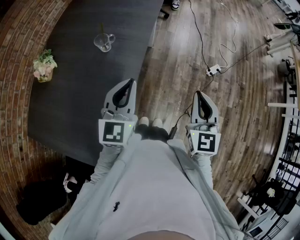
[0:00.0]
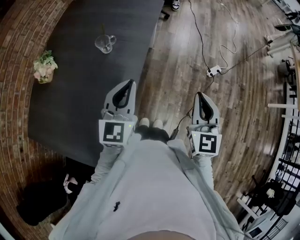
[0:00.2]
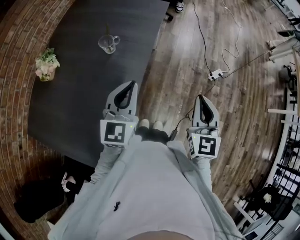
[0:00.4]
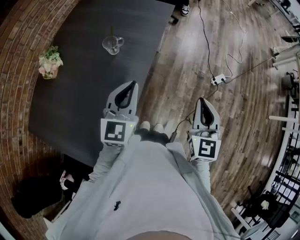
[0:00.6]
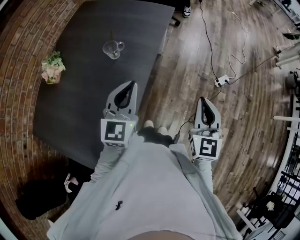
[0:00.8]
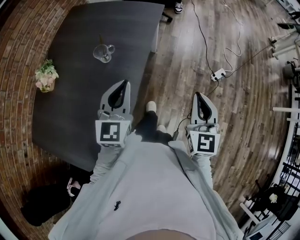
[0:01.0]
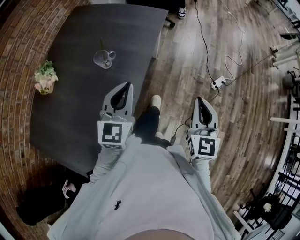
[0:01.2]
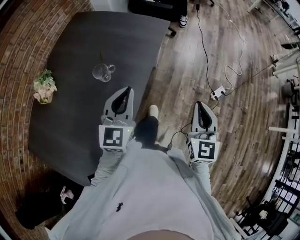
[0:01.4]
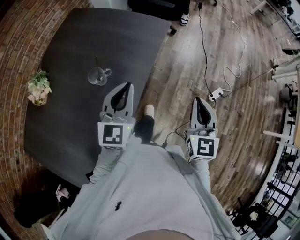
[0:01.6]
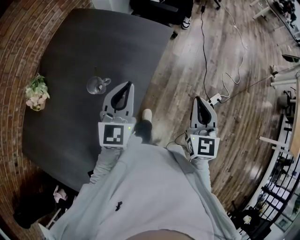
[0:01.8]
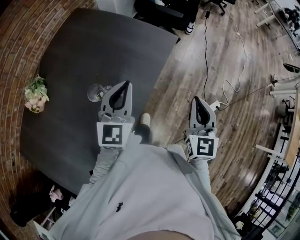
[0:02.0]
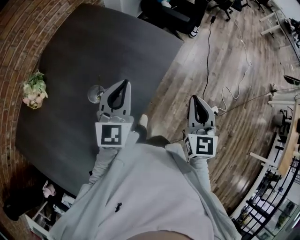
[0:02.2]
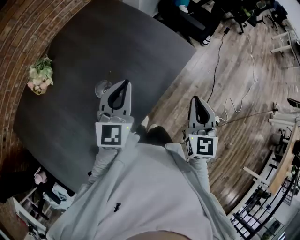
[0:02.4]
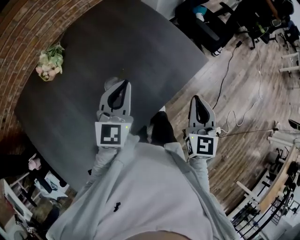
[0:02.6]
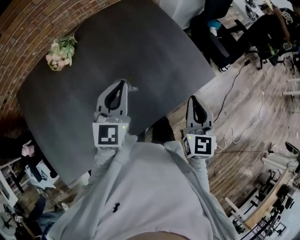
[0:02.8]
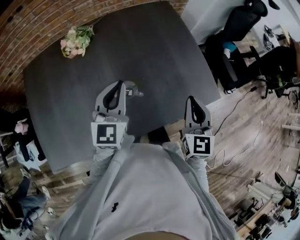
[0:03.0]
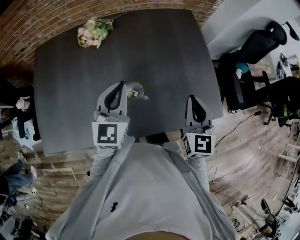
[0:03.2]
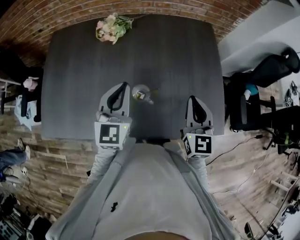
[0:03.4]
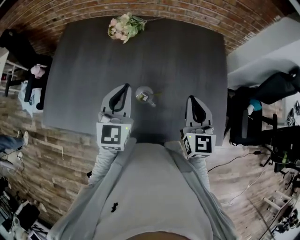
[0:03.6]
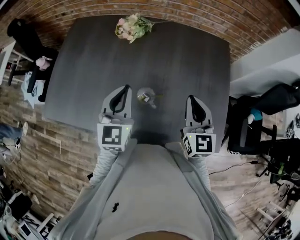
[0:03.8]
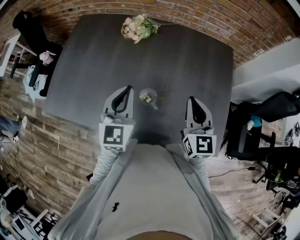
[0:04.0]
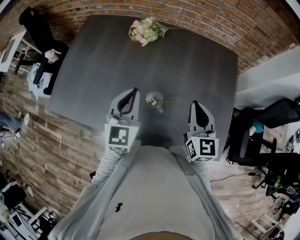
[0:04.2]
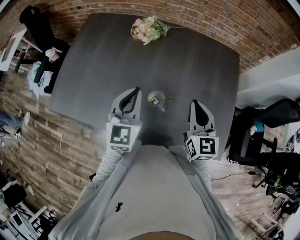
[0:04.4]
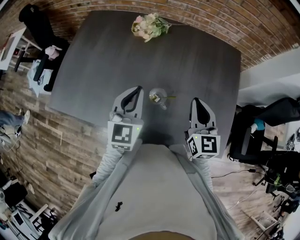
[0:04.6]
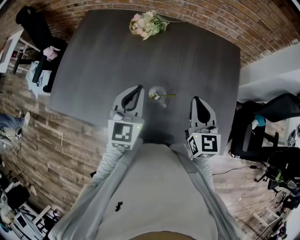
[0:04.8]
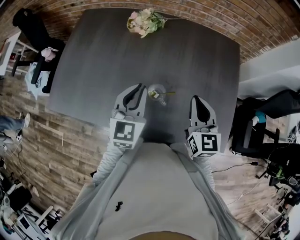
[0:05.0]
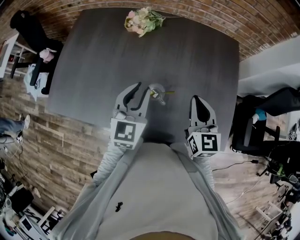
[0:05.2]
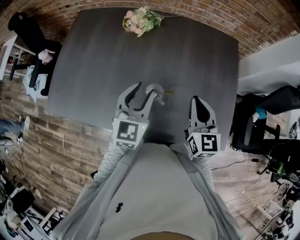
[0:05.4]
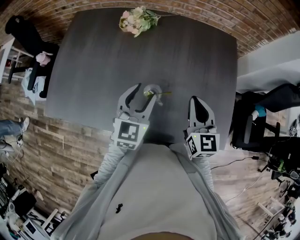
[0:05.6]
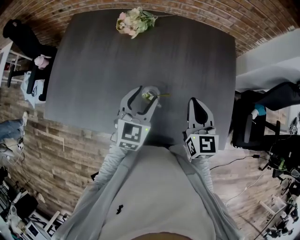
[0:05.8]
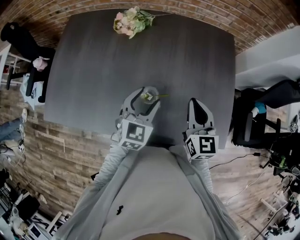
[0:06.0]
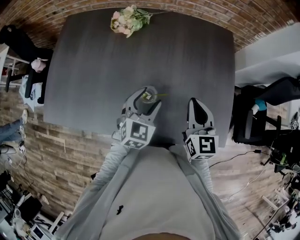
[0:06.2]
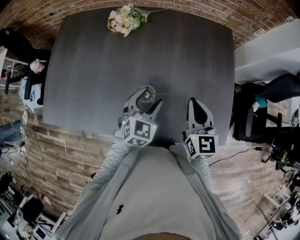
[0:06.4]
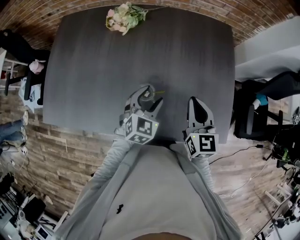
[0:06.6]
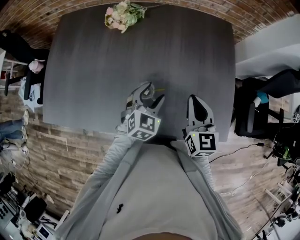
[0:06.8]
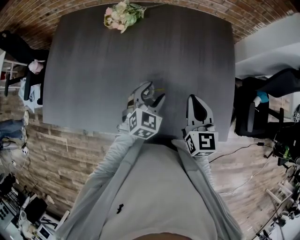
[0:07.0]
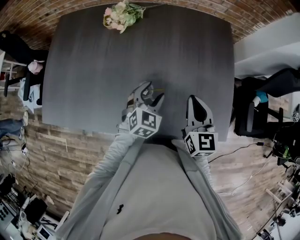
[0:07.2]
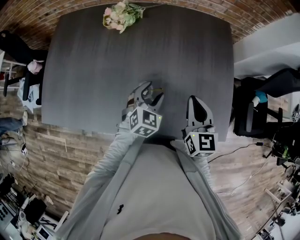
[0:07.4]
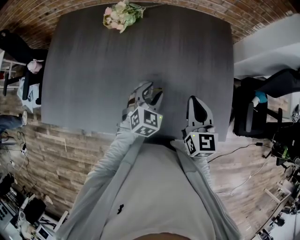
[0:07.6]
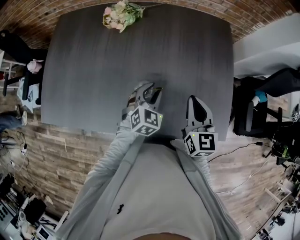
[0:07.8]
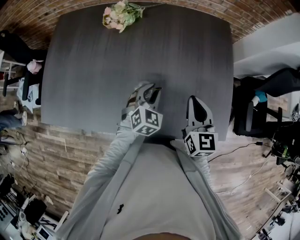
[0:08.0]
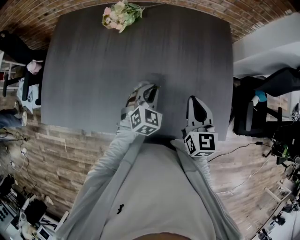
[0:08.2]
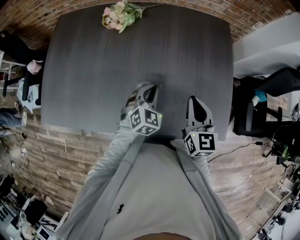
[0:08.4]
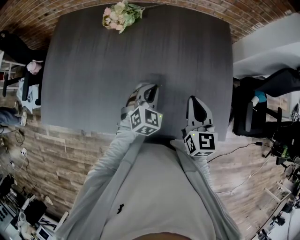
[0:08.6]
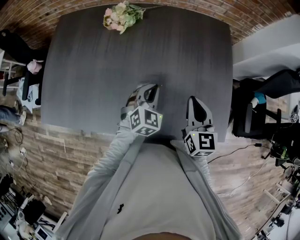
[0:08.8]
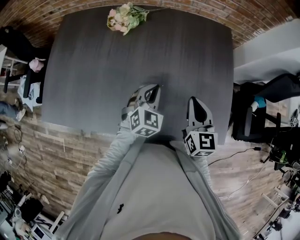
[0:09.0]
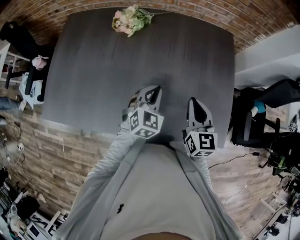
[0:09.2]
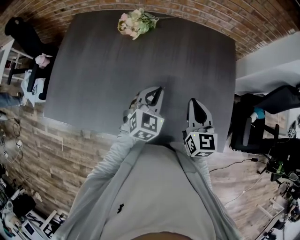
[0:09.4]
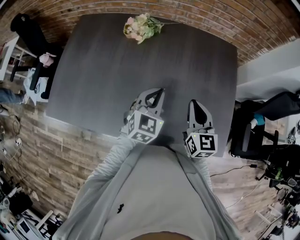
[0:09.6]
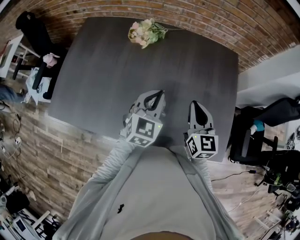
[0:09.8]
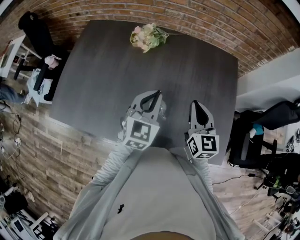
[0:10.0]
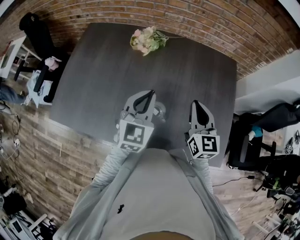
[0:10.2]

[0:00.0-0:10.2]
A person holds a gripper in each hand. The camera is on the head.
0:00.0 to 0:01.4: Both grippers move forward, about 15 cm.
0:01.4 to 0:03.0: The left gripper ends up approximately 20 cm from where it was, and changes its angle by roughly 50 degrees; the right gripper shifts by roughly 40 cm, and changes its angle by roughly 50 degrees.
0:03.0 to 0:04.4: The right gripper changes place by roughly 15 cm, and changes its angle by approximately 40 degrees. The left gripper moves about 5 cm, and changes its angle by about 40 degrees.
0:04.4 to 0:05.8: The left gripper travels to the right and downward by approximately 10 cm, and opens up.
0:05.8 to 0:07.2: The left gripper goes about 10 cm downward and to the right.
0:07.2 to 0:08.8: The left gripper closes.
0:08.8 to 0:10.2: The right gripper shifts approximately 10 cm upward, to the left and forward. Meanwhile the left gripper is displaced upward and to the left by approximately 20 cm, and swivels roughly 30 degrees.

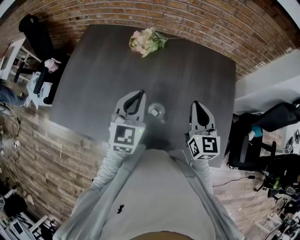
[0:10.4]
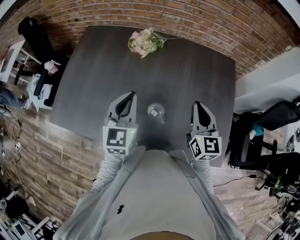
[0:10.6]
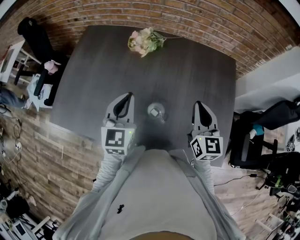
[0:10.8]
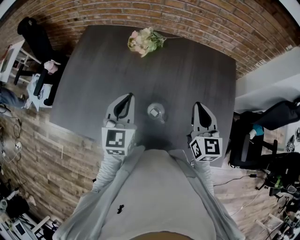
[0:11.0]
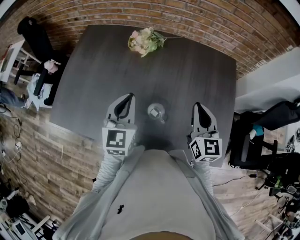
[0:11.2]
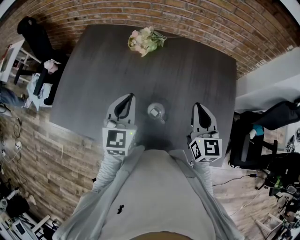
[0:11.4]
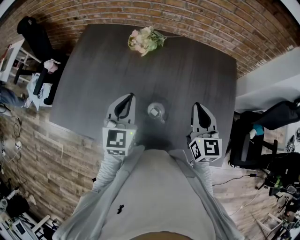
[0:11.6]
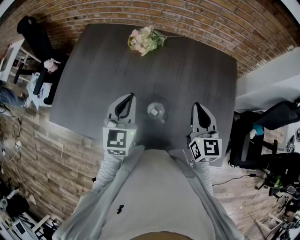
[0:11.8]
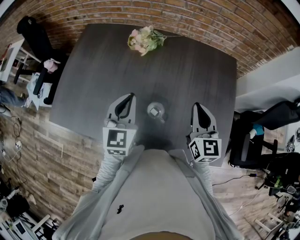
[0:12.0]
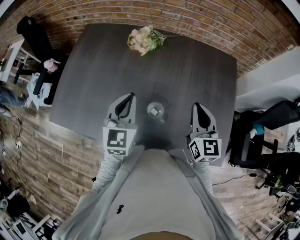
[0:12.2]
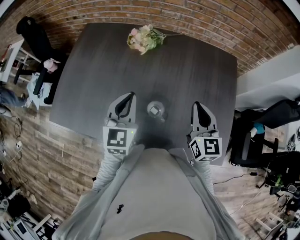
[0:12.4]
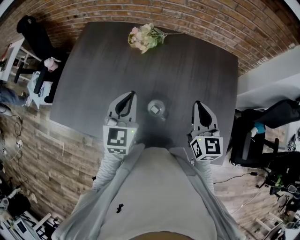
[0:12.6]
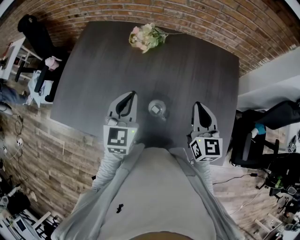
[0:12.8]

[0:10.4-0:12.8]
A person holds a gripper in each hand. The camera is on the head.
0:10.4 to 0:11.6: The grippers move only a little.
0:11.6 to 0:12.8: Both grippers stay about where they are.

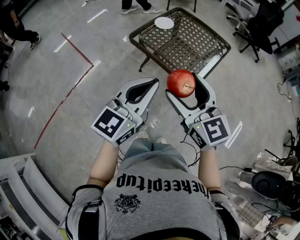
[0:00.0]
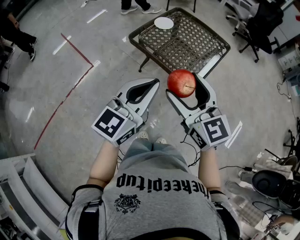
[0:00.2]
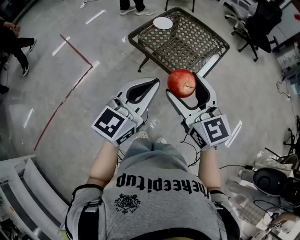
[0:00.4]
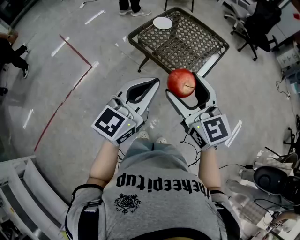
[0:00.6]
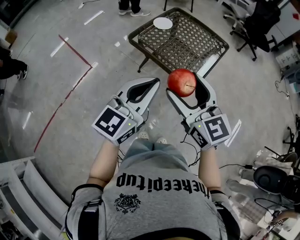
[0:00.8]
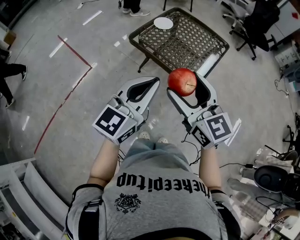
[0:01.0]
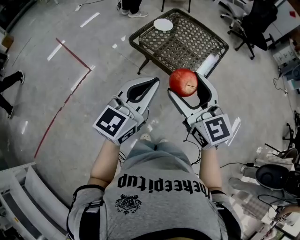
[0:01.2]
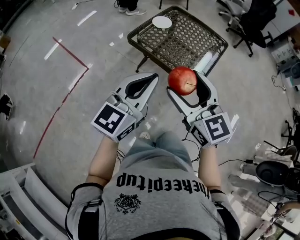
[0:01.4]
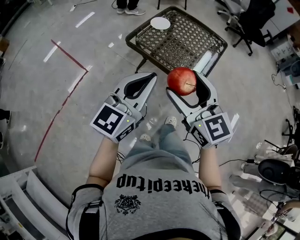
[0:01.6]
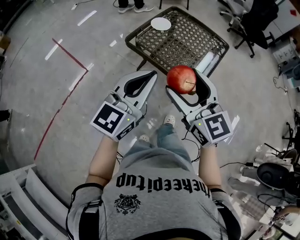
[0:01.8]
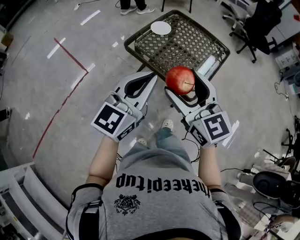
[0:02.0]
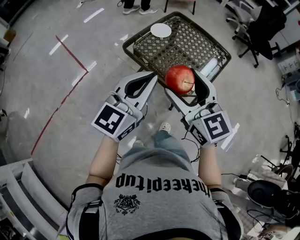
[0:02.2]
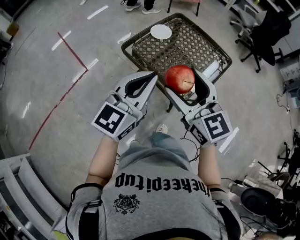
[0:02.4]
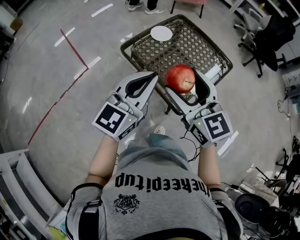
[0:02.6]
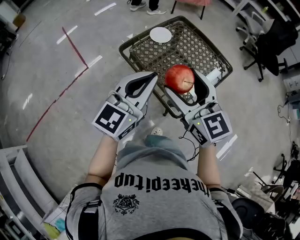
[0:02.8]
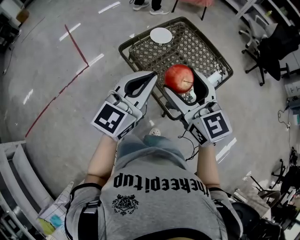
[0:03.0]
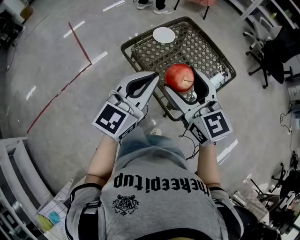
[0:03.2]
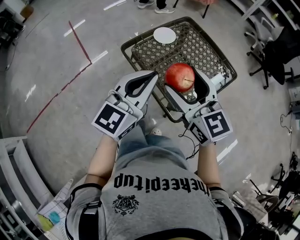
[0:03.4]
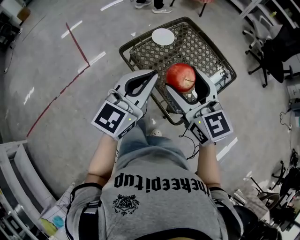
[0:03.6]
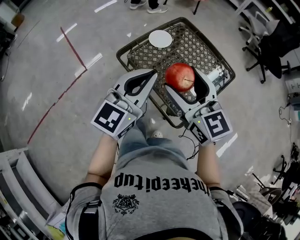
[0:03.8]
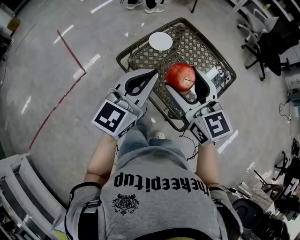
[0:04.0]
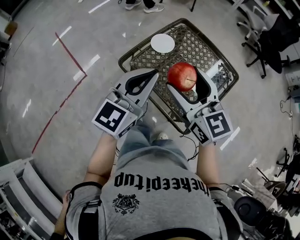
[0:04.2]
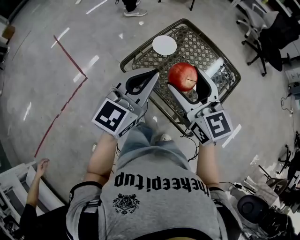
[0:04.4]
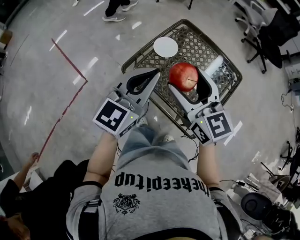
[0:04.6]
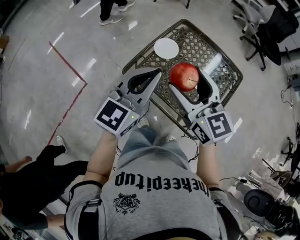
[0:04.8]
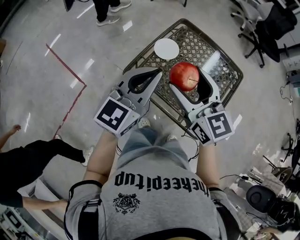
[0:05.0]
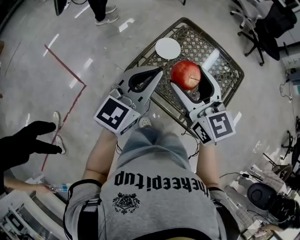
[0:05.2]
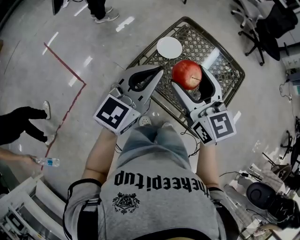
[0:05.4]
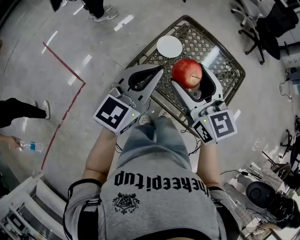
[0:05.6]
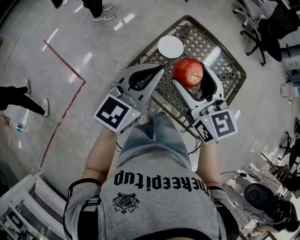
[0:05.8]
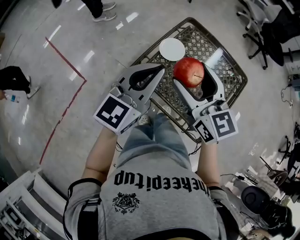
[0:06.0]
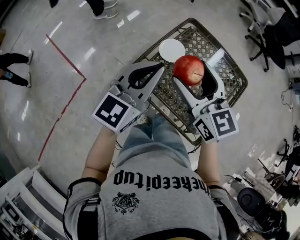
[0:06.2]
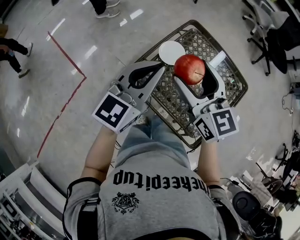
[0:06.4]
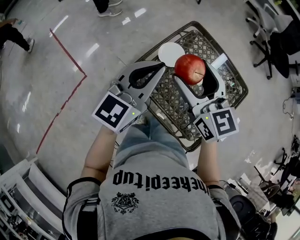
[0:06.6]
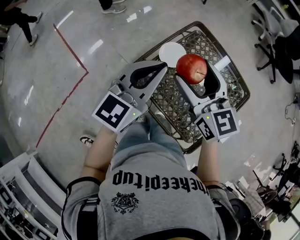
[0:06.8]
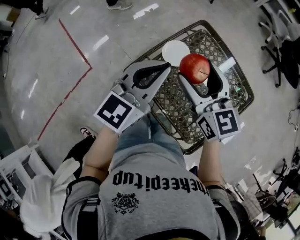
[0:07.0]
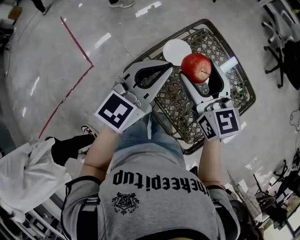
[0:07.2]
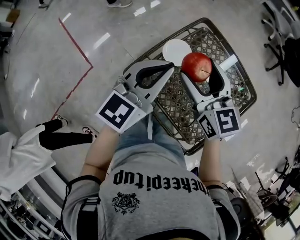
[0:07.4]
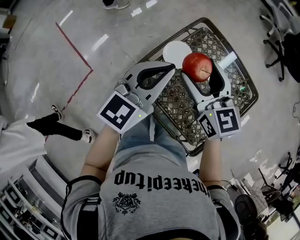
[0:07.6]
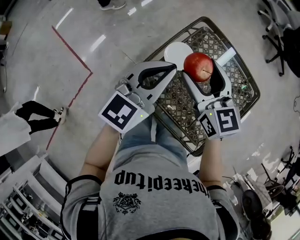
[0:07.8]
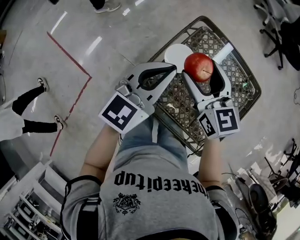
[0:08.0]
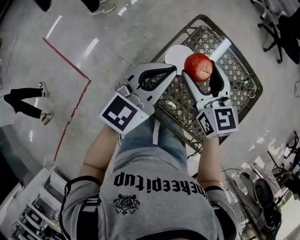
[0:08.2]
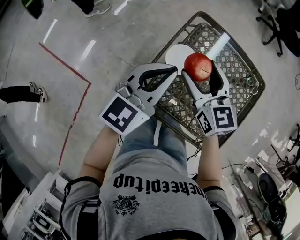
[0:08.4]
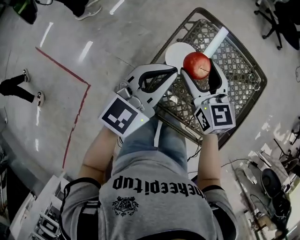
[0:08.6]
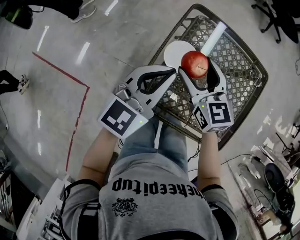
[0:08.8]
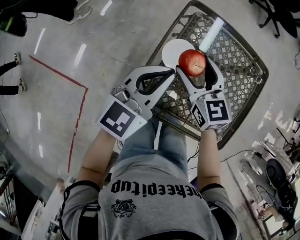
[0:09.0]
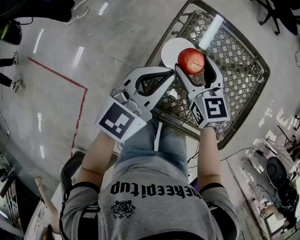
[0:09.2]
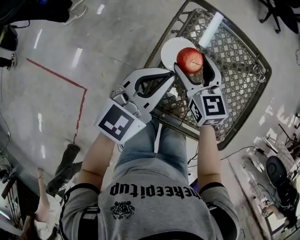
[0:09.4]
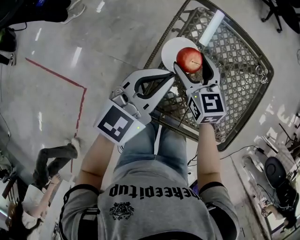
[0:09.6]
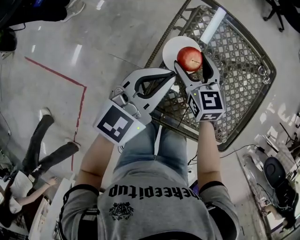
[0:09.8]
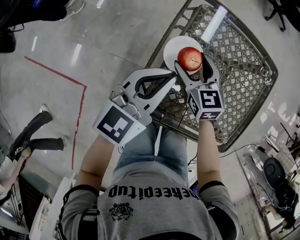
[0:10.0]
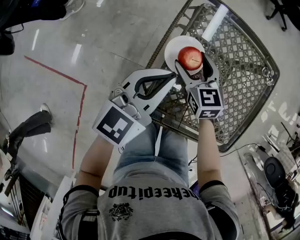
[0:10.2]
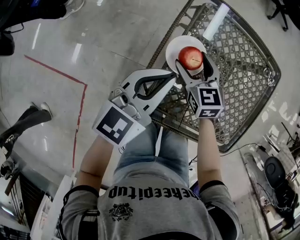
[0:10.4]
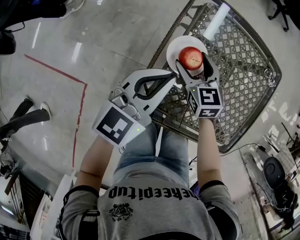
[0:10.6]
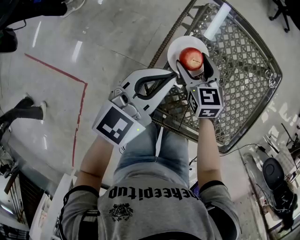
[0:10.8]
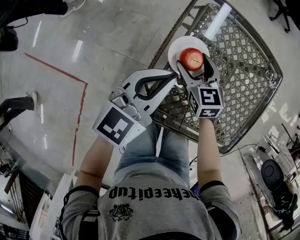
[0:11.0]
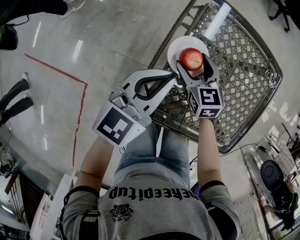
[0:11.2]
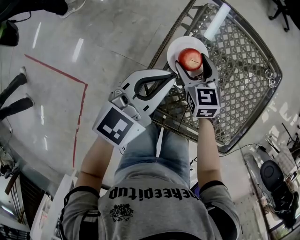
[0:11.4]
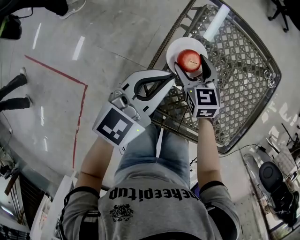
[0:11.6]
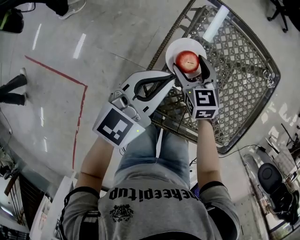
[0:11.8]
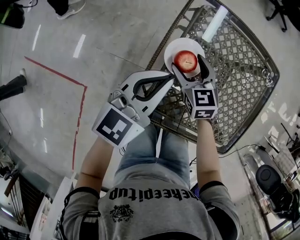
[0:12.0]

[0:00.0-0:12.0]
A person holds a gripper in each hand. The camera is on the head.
0:00.0 to 0:01.6: The left gripper travels to the left by roughly 5 cm.
0:01.6 to 0:03.0: The grippers both shift forward and to the right by approximately 25 cm.
0:03.0 to 0:04.4: The two grippers go about 15 cm forward and to the left.
0:04.4 to 0:06.0: Both grippers move forward and to the left, approximately 10 cm.
0:06.0 to 0:07.6: The right gripper moves forward and downward, roughly 15 cm. Meanwhile the left gripper is displaced forward by roughly 10 cm.
0:07.6 to 0:09.0: The right gripper goes some 15 cm downward, forward and to the left, and changes its angle by about 20 degrees; the left gripper shifts approximately 10 cm forward, downward and to the left, and turns by some 20 degrees.
0:09.0 to 0:10.4: The left gripper heads downward, covering roughly 5 cm, while the right gripper goes some 15 cm downward.
0:10.4 to 0:12.0: The grippers move only a little.
